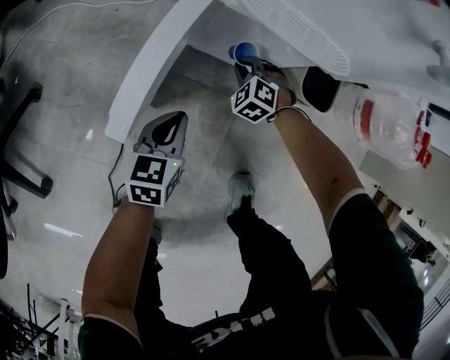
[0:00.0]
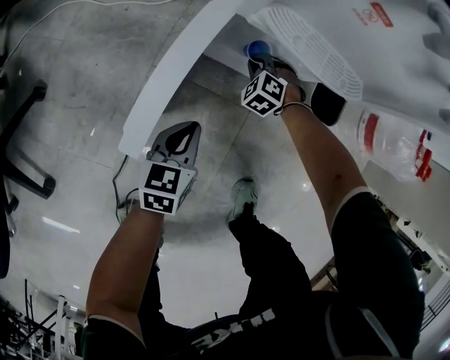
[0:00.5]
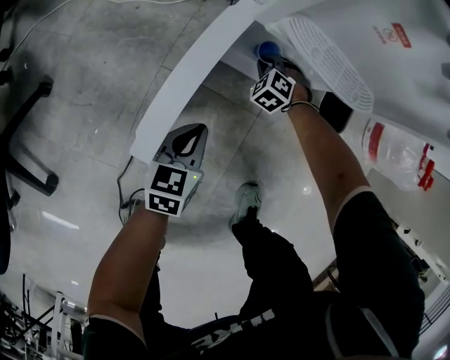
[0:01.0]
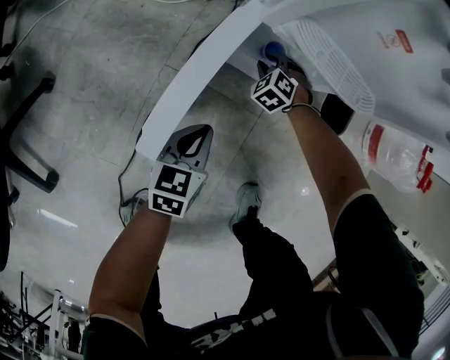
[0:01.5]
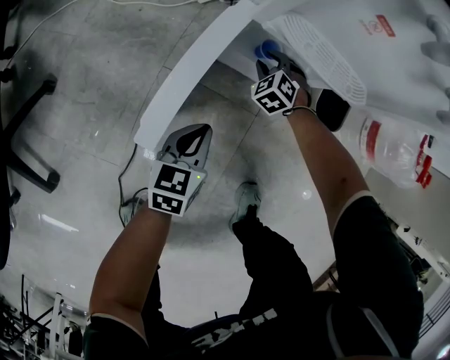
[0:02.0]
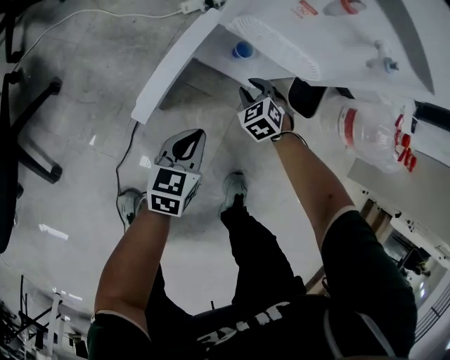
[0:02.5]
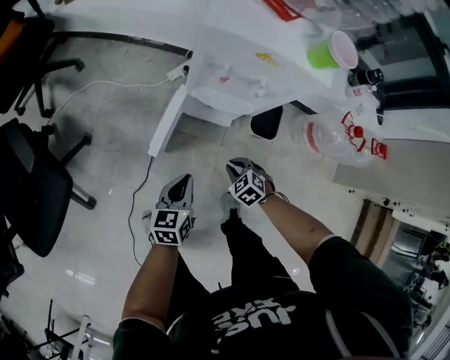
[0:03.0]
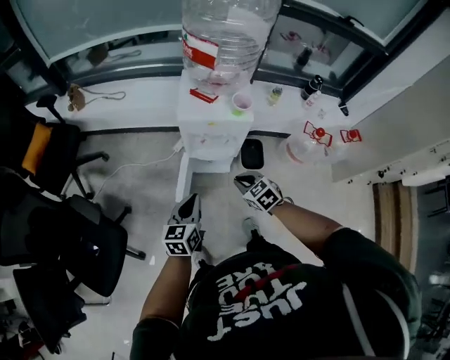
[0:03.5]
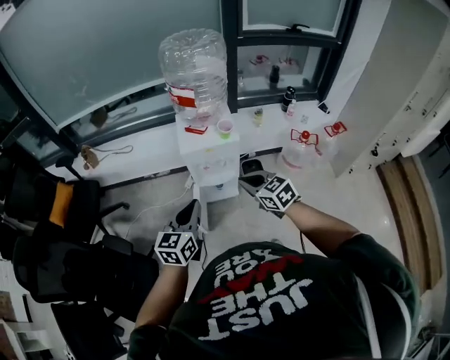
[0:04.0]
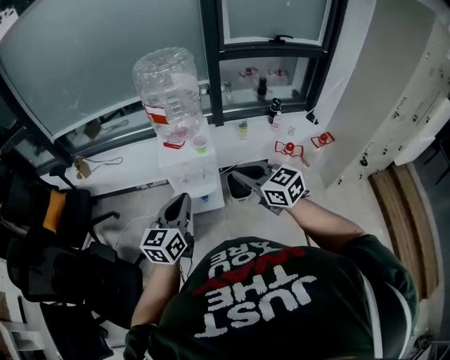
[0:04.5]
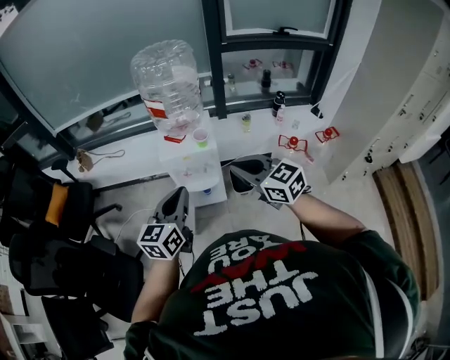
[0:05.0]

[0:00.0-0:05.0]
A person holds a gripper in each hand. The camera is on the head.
0:00.0 to 0:02.5: The two grippers go some 10 cm upward. The right gripper opens up.
0:02.5 to 0:05.0: The grippers both shift upward by roughly 80 cm. The left gripper changes its angle by about 30 degrees. The right gripper points its fingers some 50 degrees further upward, and closes its fingers.

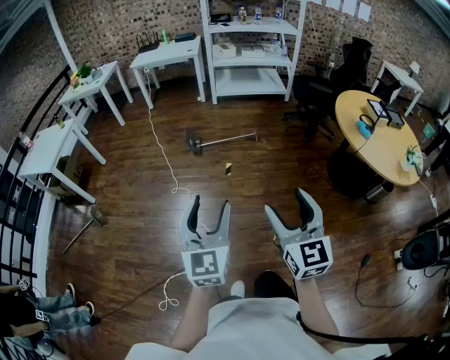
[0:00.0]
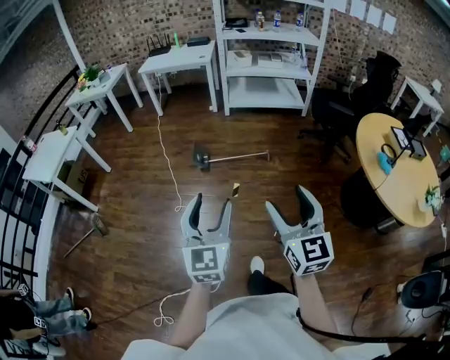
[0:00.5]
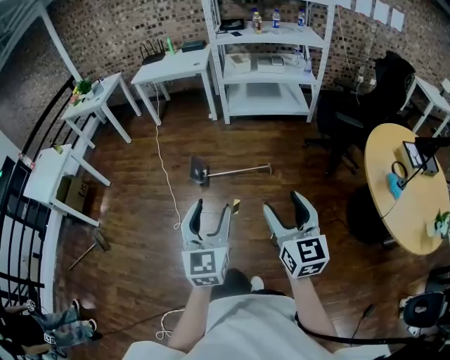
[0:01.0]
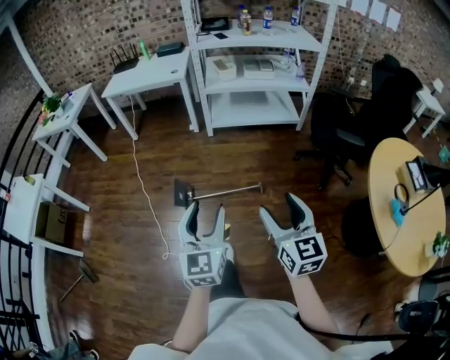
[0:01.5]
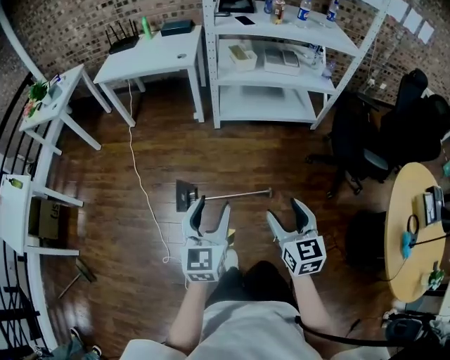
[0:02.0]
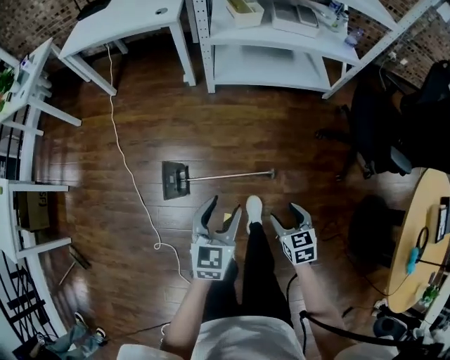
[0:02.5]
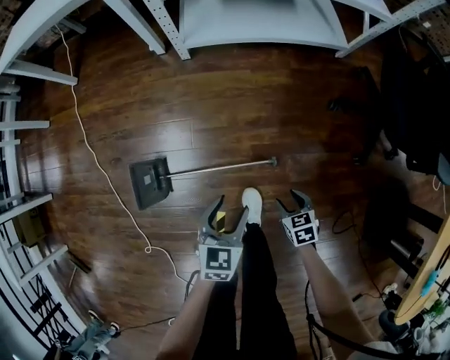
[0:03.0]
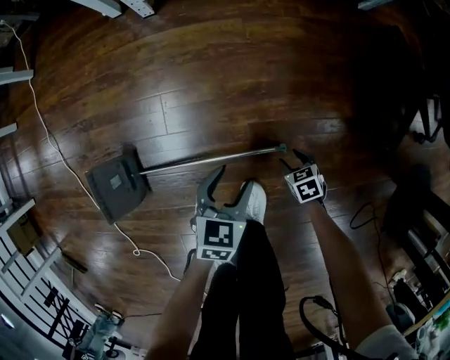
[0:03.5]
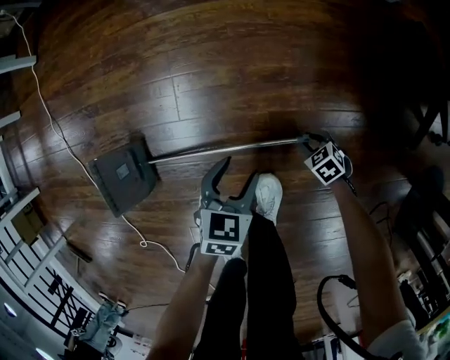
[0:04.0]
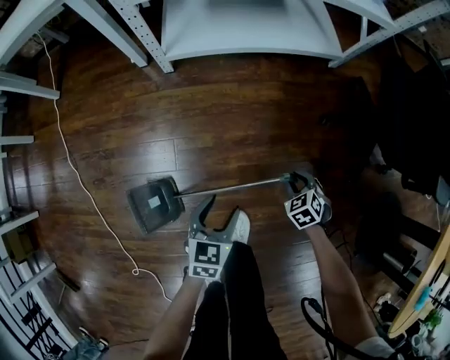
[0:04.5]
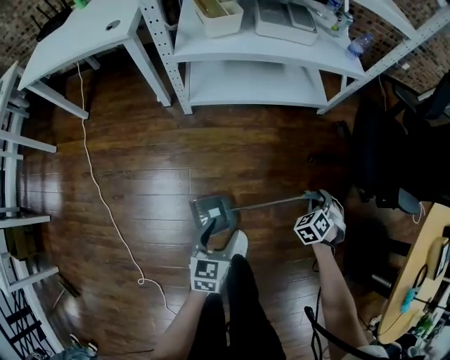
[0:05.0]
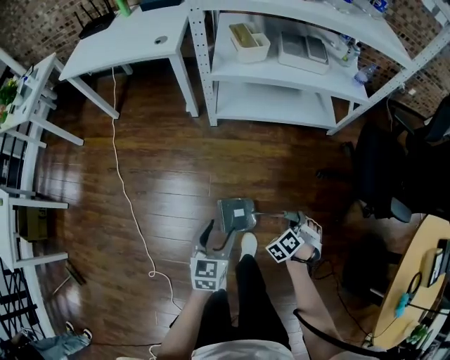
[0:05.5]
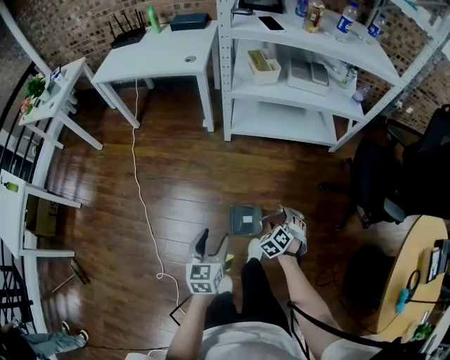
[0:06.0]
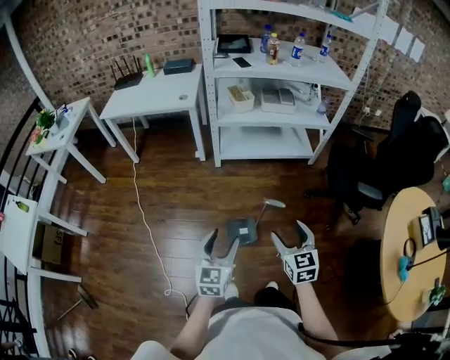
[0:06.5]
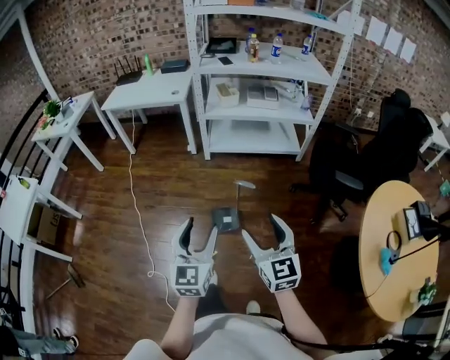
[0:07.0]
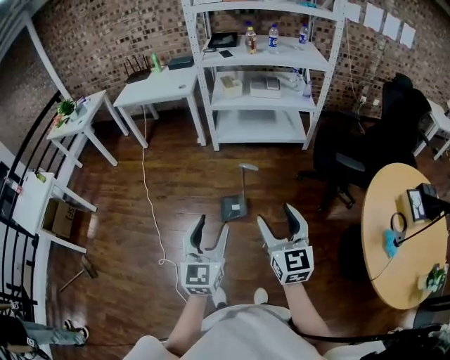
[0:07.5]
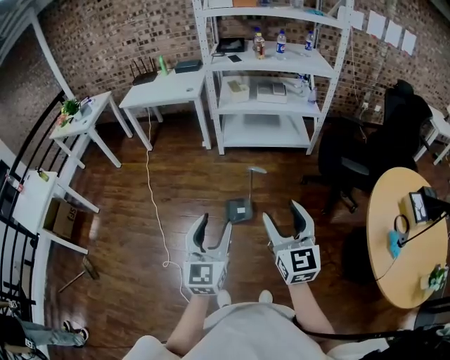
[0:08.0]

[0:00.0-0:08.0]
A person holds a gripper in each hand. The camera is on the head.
0:00.0 to 0:02.0: The two grippers travel together, forward, approximately 80 cm.
0:02.0 to 0:04.0: The grippers both shift downward by approximately 80 cm. The right gripper tilts its fingers approximately 50 degrees downward, and closes its fingers; the left gripper angles its fingers downward, by some 40 degrees.
0:04.0 to 0:06.0: The two grippers go roughly 60 cm upward. The left gripper rotates about 30 degrees. Meanwhile the right gripper changes its angle by some 40 degrees, and opens.
0:06.0 to 0:08.0: The left gripper is displaced backward and upward by some 50 cm, and rotates some 30 degrees. The right gripper heads upward and backward, covering some 60 cm, and tips its fingers upward by roughly 60 degrees.

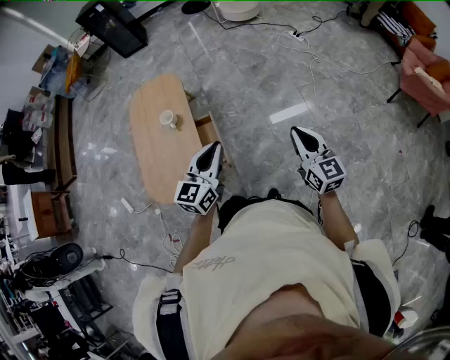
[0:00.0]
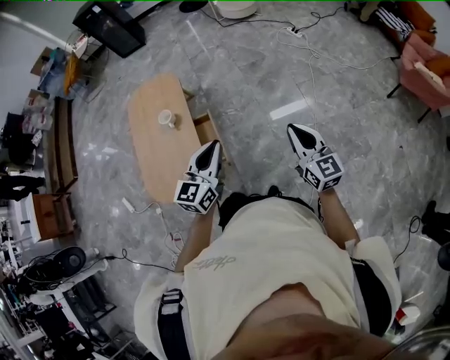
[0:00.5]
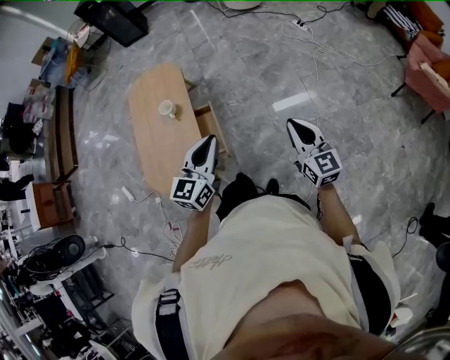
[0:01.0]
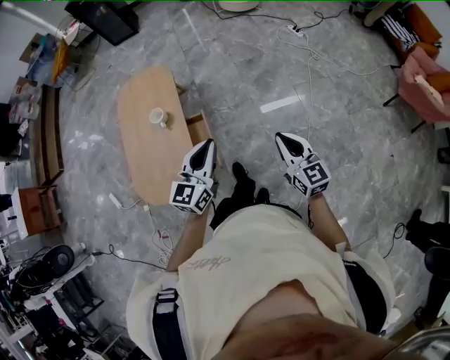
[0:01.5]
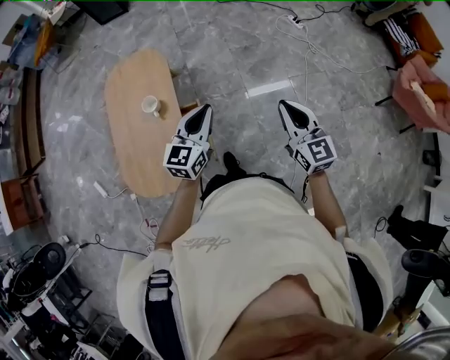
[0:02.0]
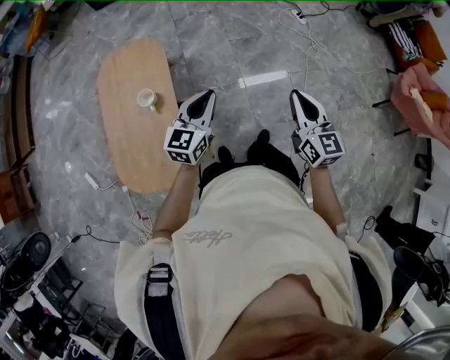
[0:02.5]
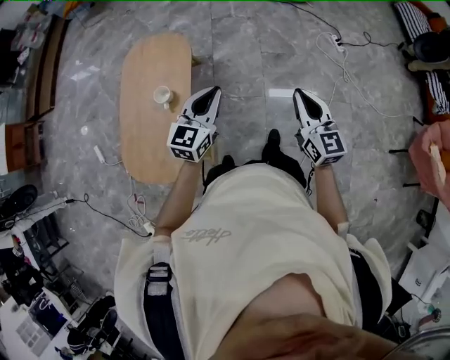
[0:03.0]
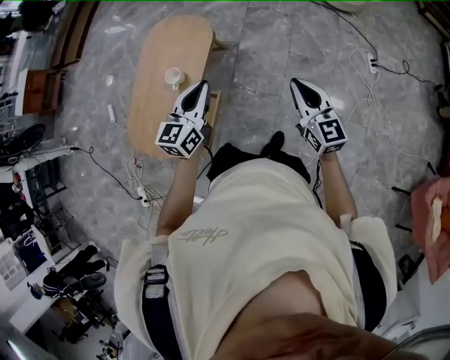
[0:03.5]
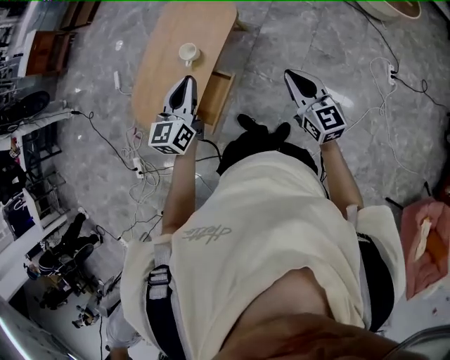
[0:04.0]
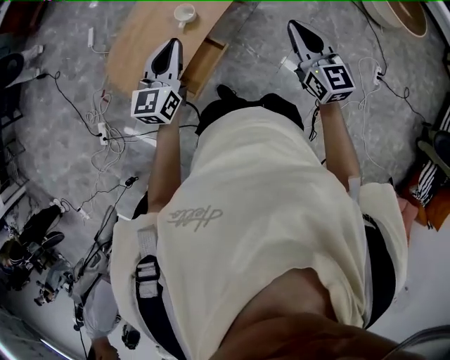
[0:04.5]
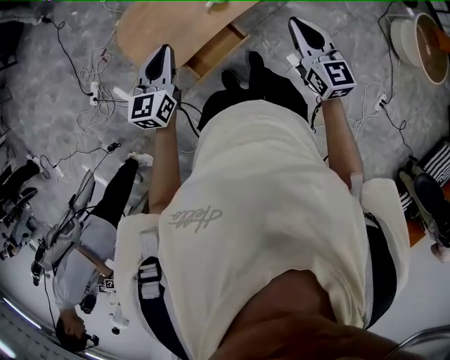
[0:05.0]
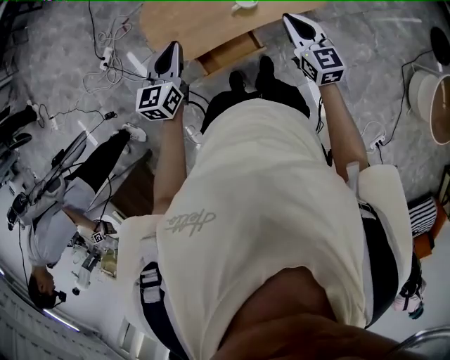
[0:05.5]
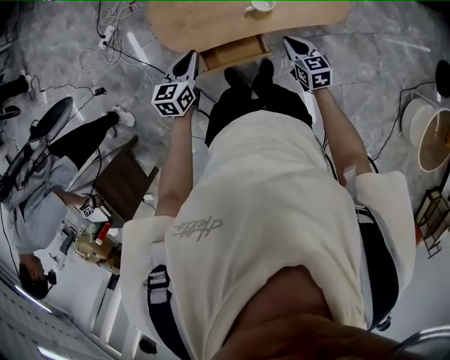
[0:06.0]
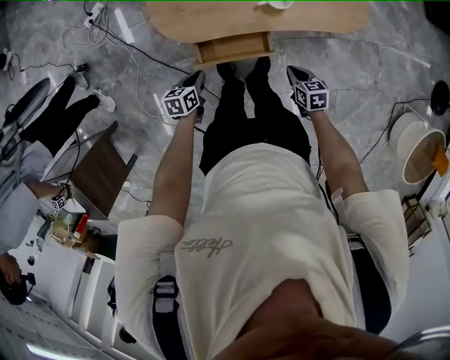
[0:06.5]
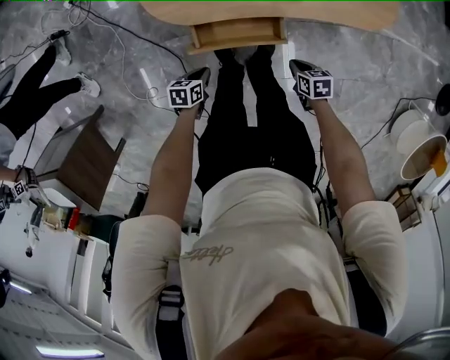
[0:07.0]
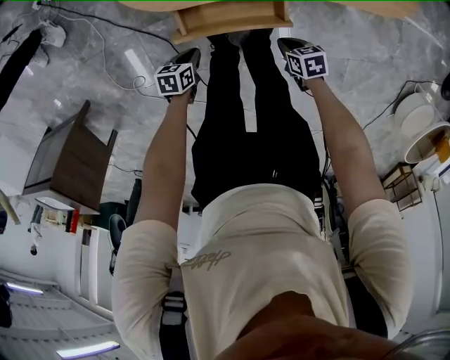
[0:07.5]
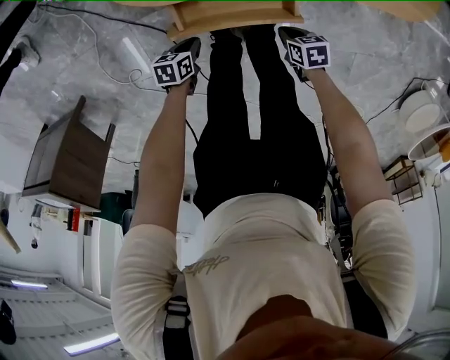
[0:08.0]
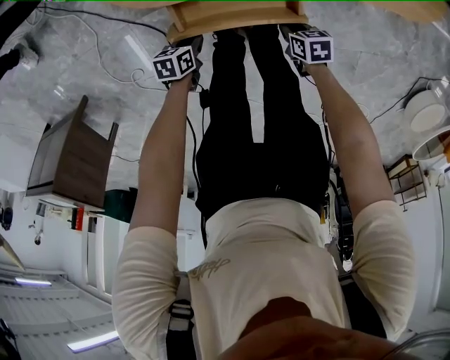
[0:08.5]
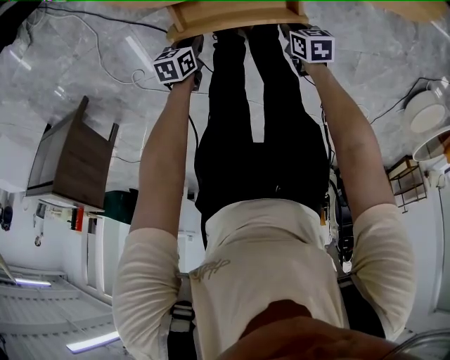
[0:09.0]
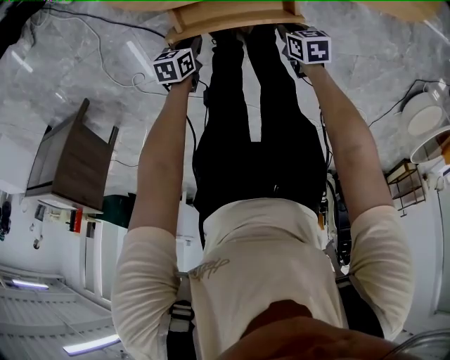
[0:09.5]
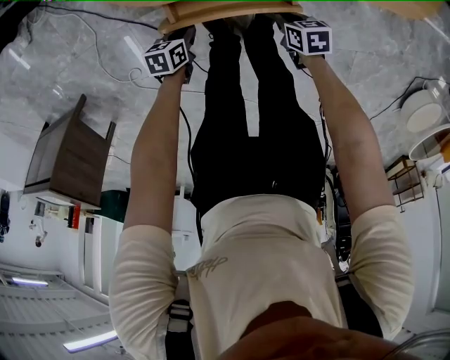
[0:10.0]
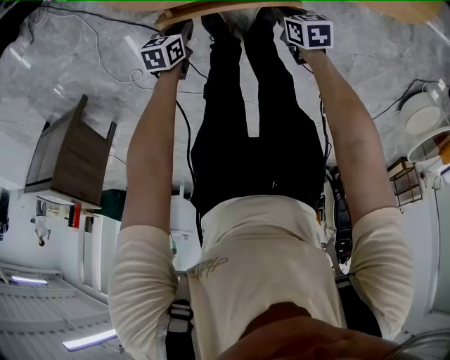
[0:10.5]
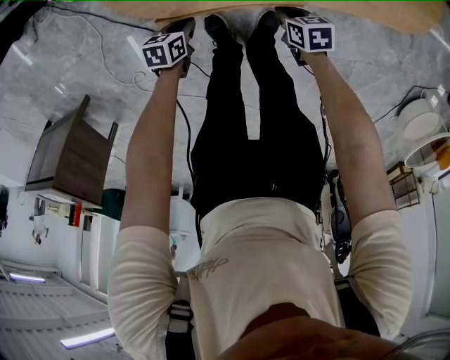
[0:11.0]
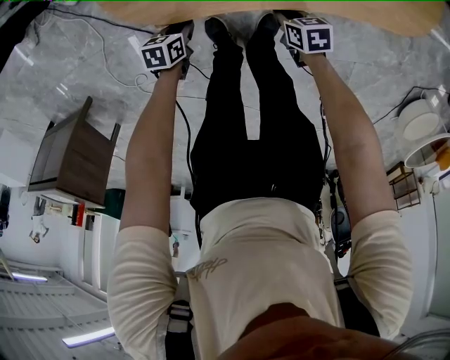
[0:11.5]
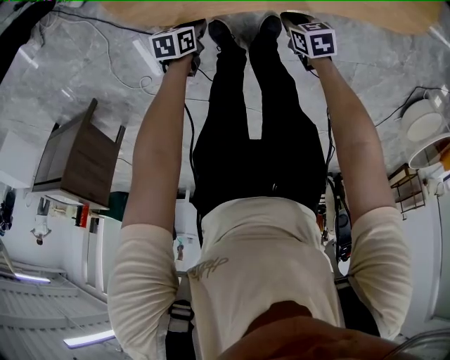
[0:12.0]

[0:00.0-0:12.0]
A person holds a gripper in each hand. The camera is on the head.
0:00.0 to 0:02.0: The left gripper is displaced forward by about 25 cm; the right gripper heads forward and to the left, covering about 25 cm.
0:02.0 to 0:04.0: The left gripper shifts by roughly 20 cm, and rotates approximately 50 degrees; the right gripper shifts by approximately 35 cm, and turns by roughly 40 degrees.
0:04.0 to 0:06.0: The left gripper moves some 20 cm, and rotates roughly 50 degrees. Meanwhile the right gripper moves approximately 35 cm, and swivels roughly 60 degrees.
0:06.0 to 0:08.0: The two grippers go approximately 50 cm downward. The right gripper changes its angle by some 40 degrees. The left gripper rotates approximately 50 degrees.
0:08.0 to 0:10.0: The left gripper shifts by some 5 cm. Meanwhile the right gripper moves roughly 5 cm.
0:10.0 to 0:12.0: The left gripper changes place by approximately 10 cm. The right gripper changes place by about 10 cm.

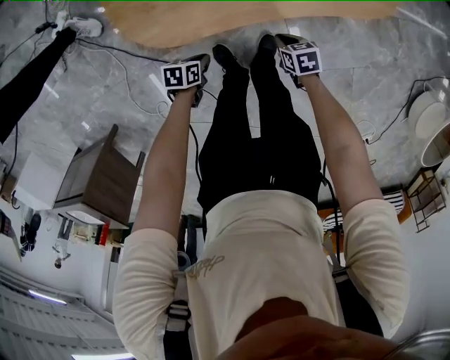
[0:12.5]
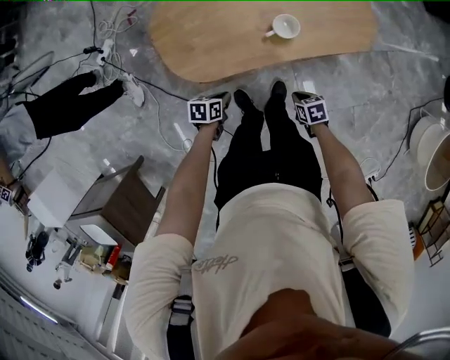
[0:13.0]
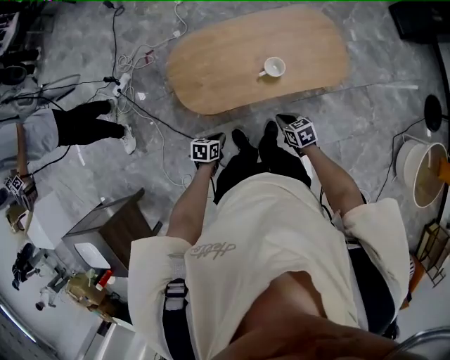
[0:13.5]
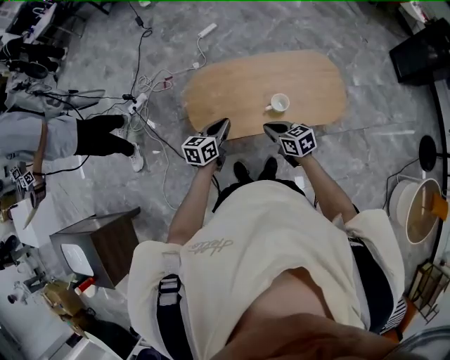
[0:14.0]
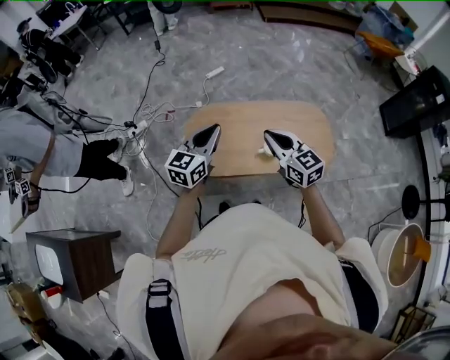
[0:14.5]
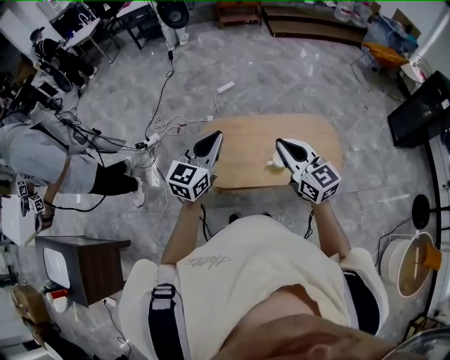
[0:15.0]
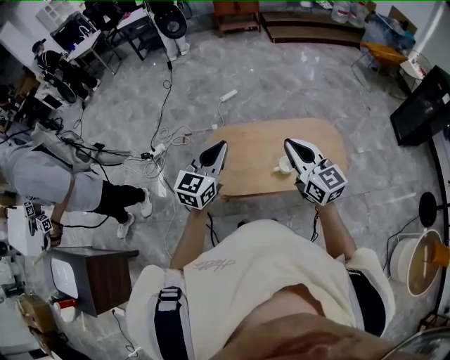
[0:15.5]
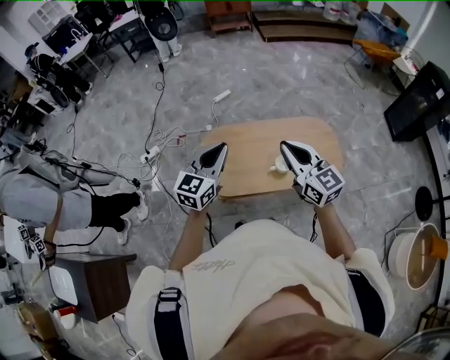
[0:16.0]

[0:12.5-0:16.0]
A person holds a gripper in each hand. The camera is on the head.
0:12.5 to 0:14.5: The grippers both shift upward by roughly 70 cm. The right gripper tilts its fingers some 50 degrees upward; the left gripper tilts its fingers about 50 degrees upward.
0:14.5 to 0:16.0: The right gripper is displaced upward by some 10 cm.
